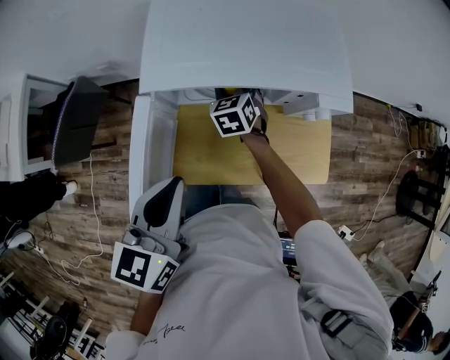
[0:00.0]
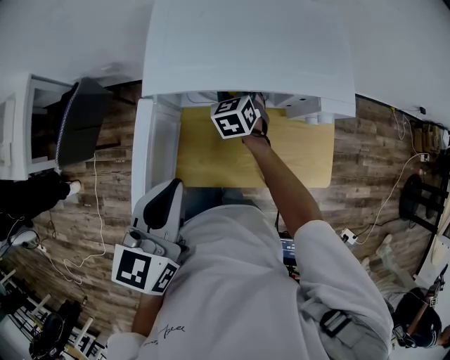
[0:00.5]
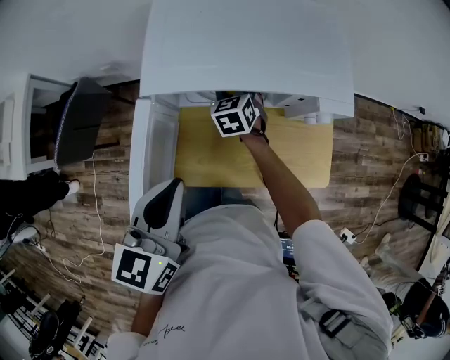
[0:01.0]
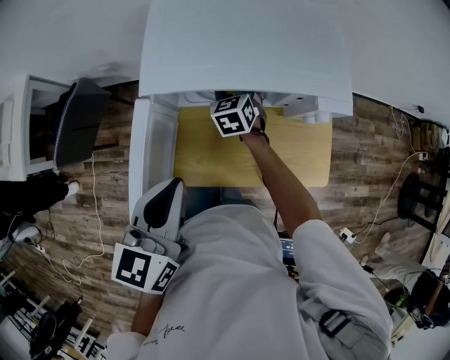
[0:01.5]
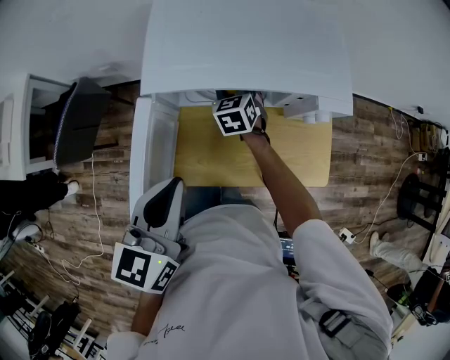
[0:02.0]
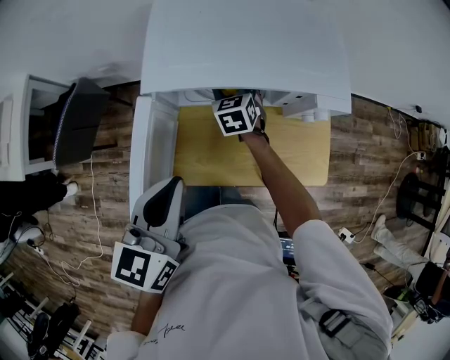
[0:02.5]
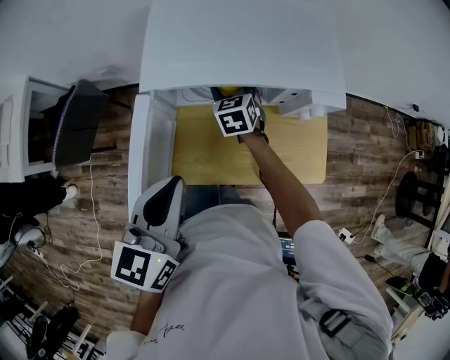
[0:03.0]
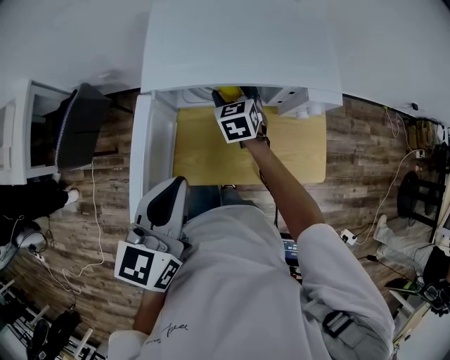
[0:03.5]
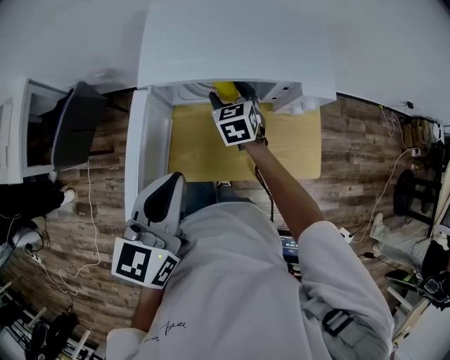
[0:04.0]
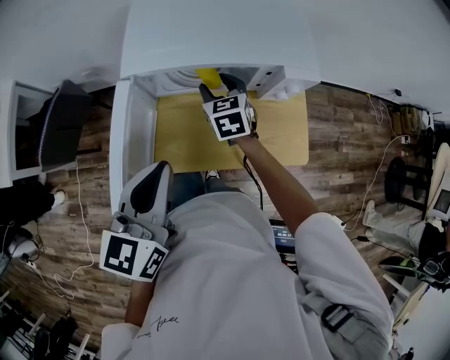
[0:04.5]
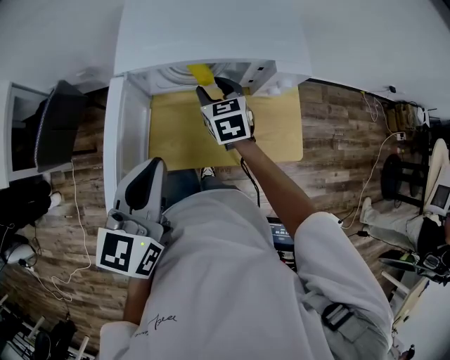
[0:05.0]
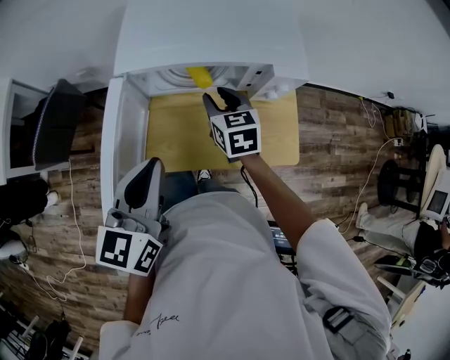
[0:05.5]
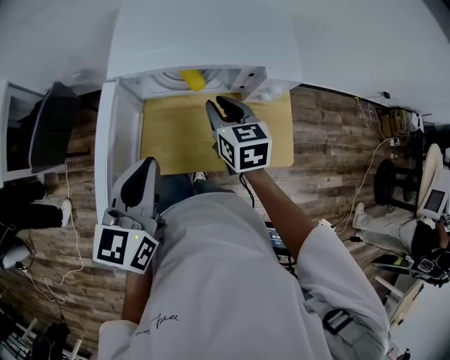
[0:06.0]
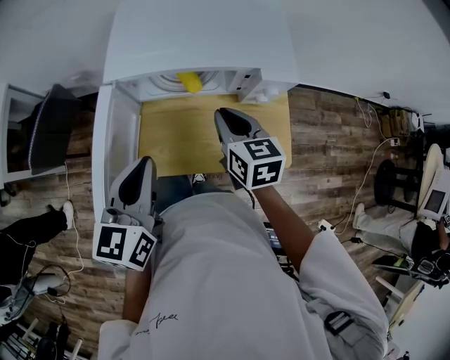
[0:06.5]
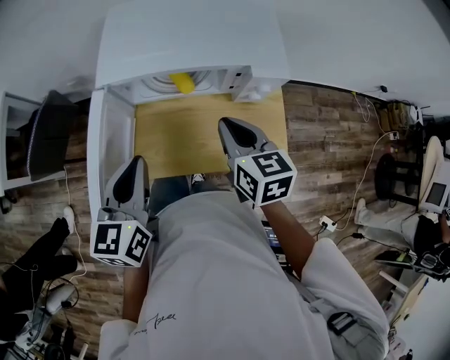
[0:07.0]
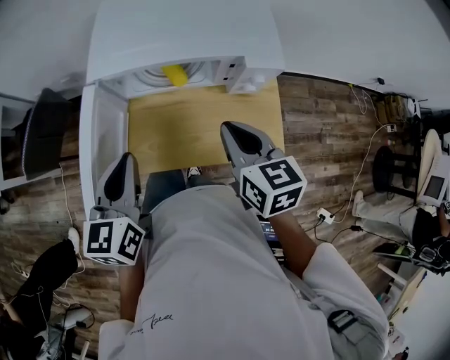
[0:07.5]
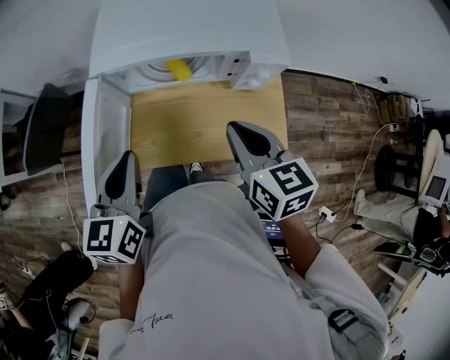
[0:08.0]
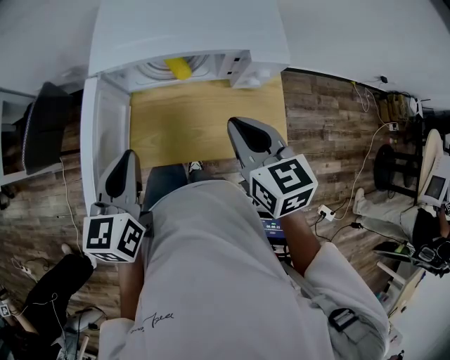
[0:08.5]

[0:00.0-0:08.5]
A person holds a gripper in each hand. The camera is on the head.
0:00.0 to 0:02.0: Both grippers stay about where they are.
0:02.0 to 0:04.0: The right gripper travels backward by some 5 cm.
0:04.0 to 0:06.5: The right gripper moves backward, upward and to the right, approximately 15 cm, turns by roughly 20 degrees, and closes its fingers.
0:06.5 to 0:08.5: The right gripper heads backward and upward, covering about 10 cm.

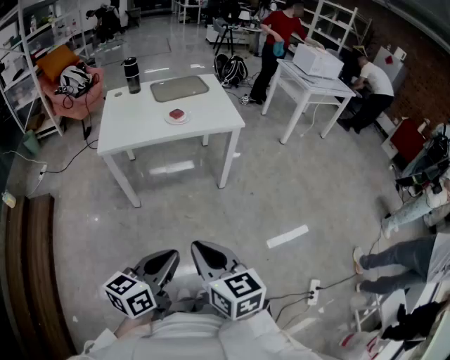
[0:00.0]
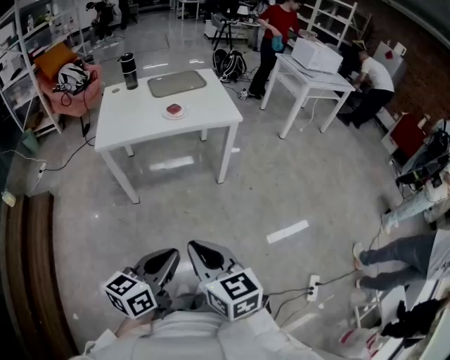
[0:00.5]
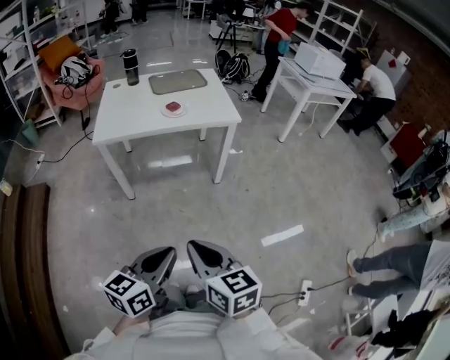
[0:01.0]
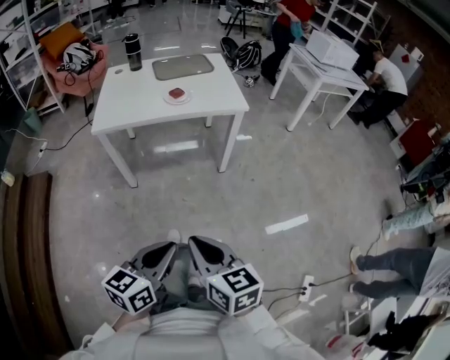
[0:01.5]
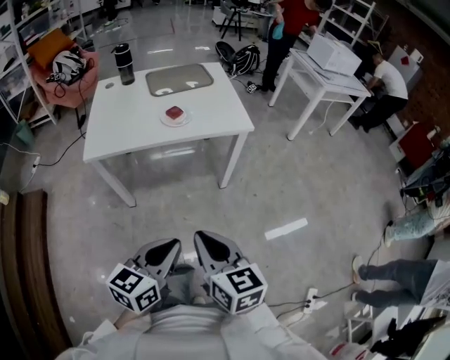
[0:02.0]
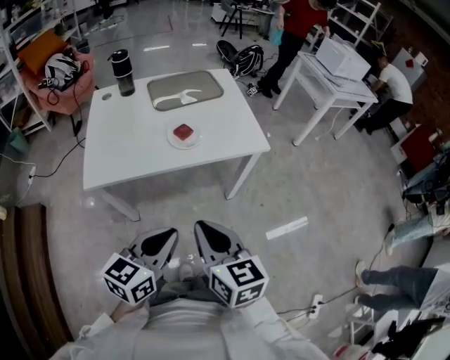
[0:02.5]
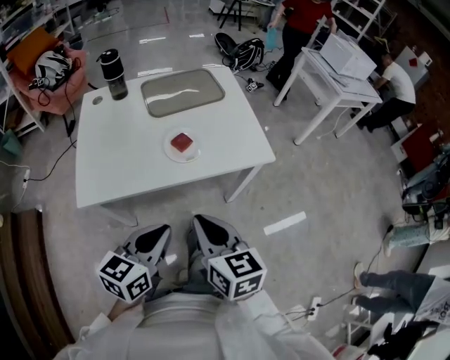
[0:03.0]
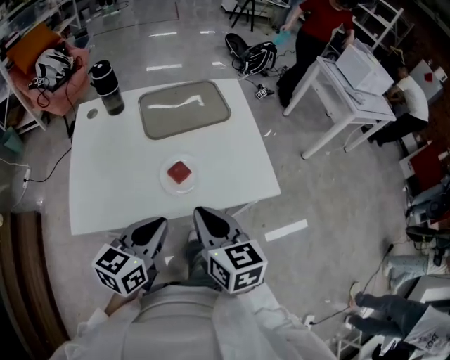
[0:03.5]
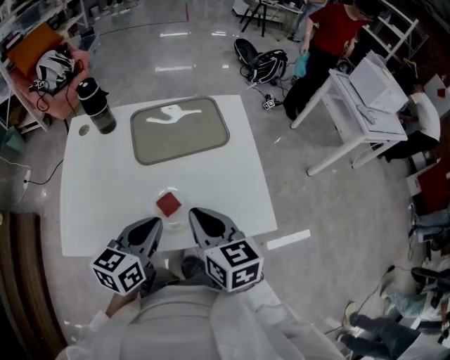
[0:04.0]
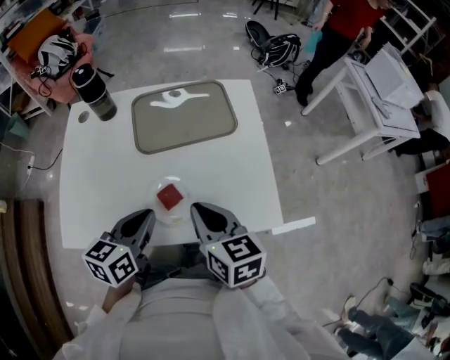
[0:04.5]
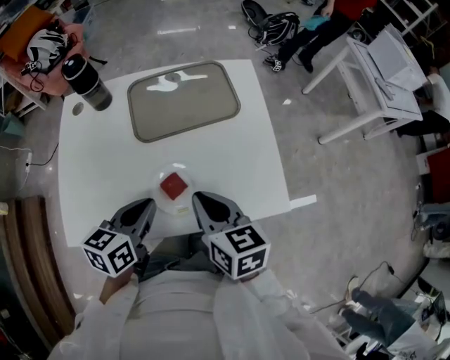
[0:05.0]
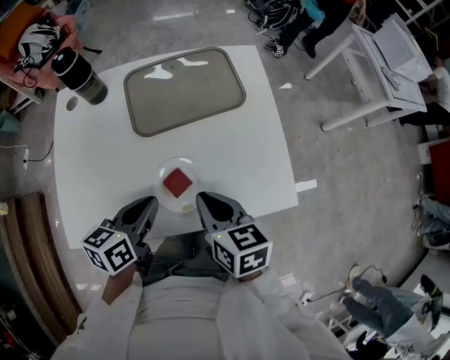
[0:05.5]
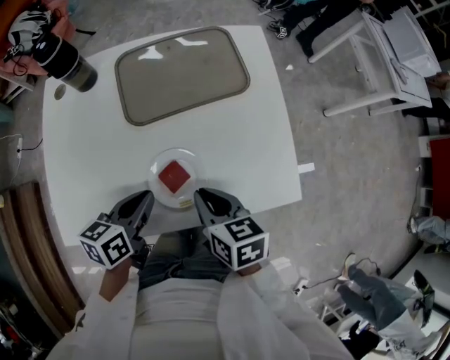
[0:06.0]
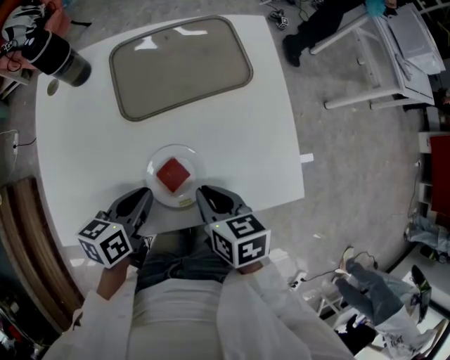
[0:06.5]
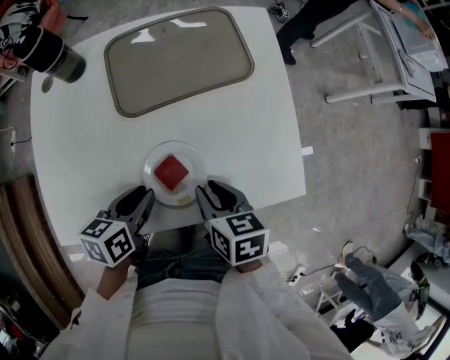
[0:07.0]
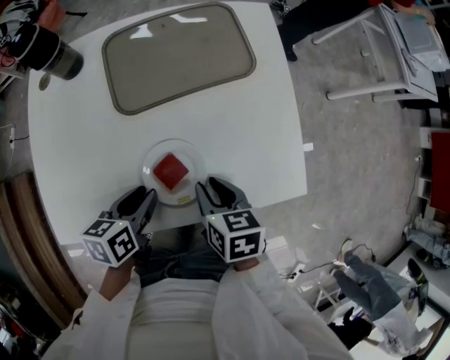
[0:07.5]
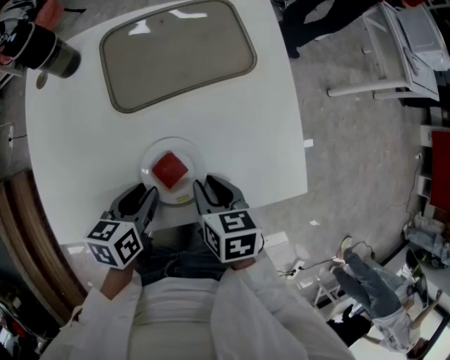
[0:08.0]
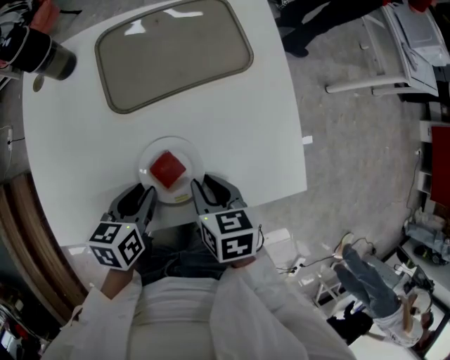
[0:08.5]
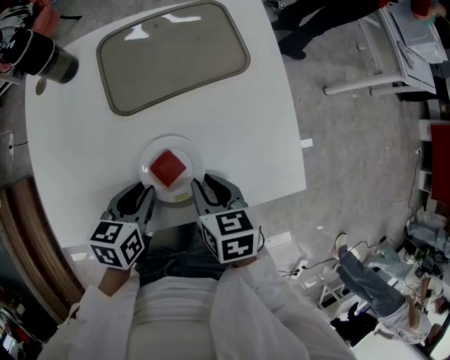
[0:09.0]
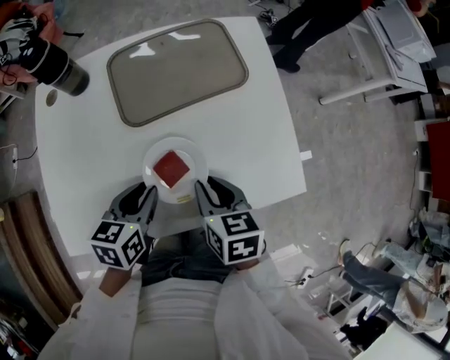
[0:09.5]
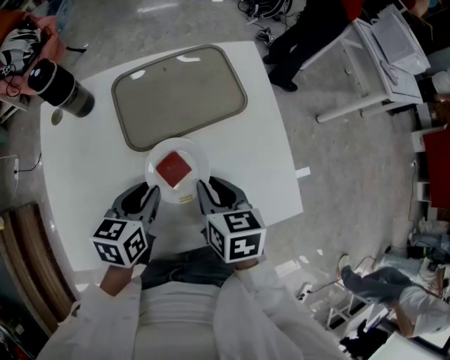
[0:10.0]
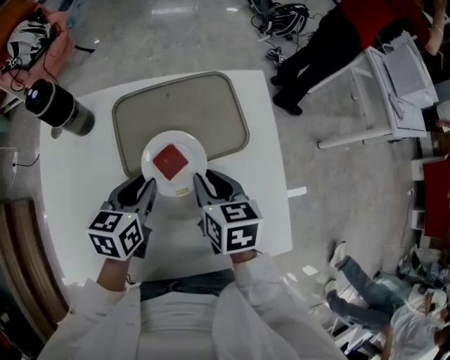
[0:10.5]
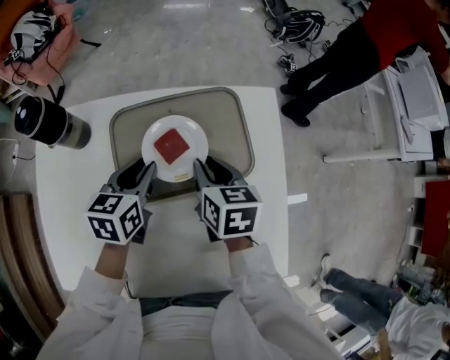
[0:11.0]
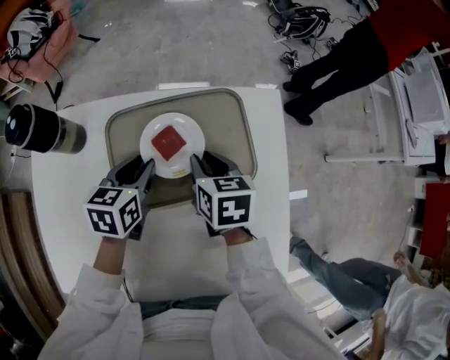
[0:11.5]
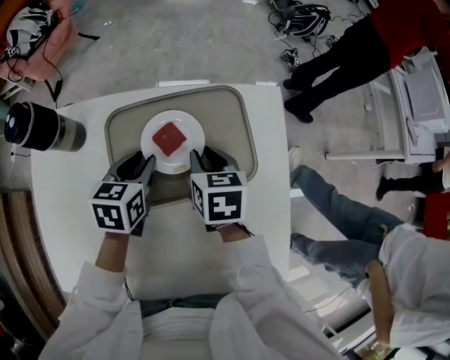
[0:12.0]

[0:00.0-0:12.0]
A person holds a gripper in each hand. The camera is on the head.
0:00.0 to 0:02.0: The two grippers go some 20 cm forward.
0:02.0 to 0:04.0: The pair of grippers is taken forward, some 60 cm.
0:04.0 to 0:06.0: The left gripper travels downward, forward and to the left by about 15 cm, and changes its angle by some 20 degrees. The right gripper is displaced downward by roughly 15 cm, and rotates roughly 20 degrees.
0:06.0 to 0:08.0: Both grippers travel together downward, about 5 cm. The left gripper opens up.
0:08.0 to 0:10.0: Both grippers move forward and upward, some 10 cm.
0:10.0 to 0:12.0: Both grippers travel together forward, about 25 cm.

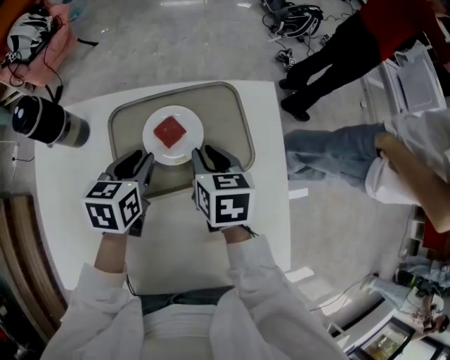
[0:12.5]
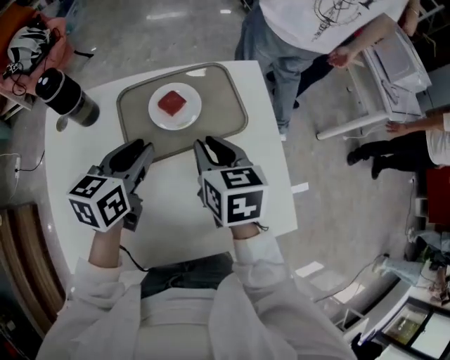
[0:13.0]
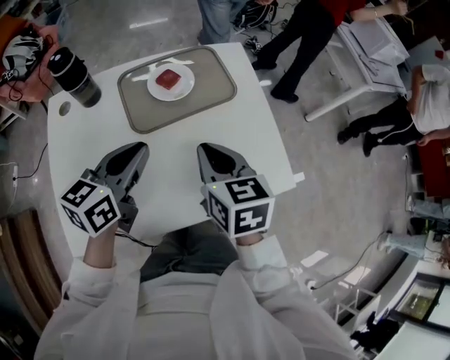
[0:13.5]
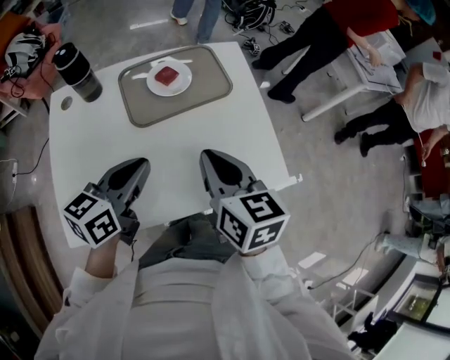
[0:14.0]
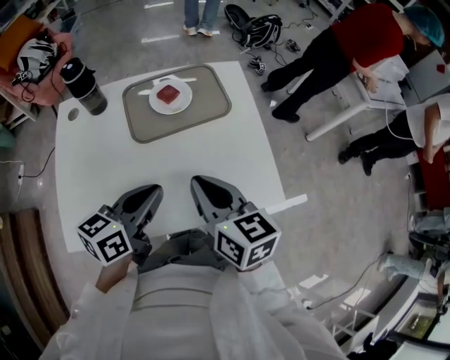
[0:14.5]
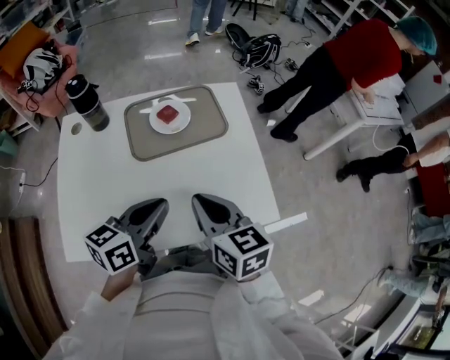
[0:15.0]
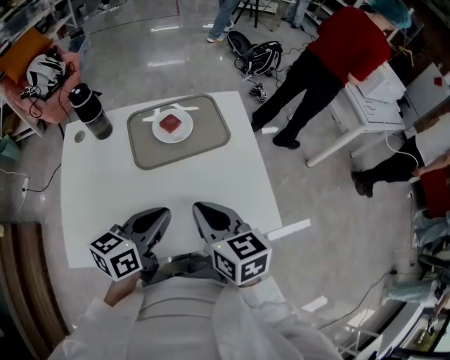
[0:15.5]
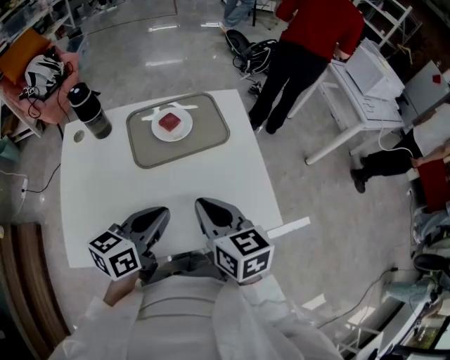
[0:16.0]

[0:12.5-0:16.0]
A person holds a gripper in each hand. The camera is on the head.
0:12.5 to 0:14.5: The grippers both shift backward and upward by some 35 cm. The left gripper swivels roughly 30 degrees, and closes up; the right gripper rotates approximately 20 degrees.
0:14.5 to 0:16.0: The grippers make only small movements.

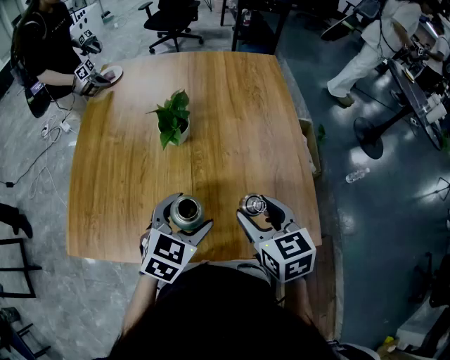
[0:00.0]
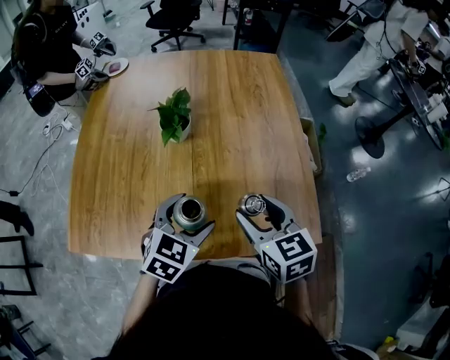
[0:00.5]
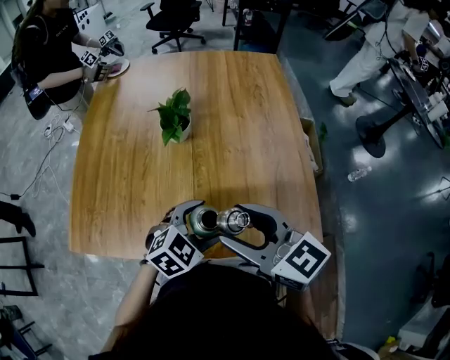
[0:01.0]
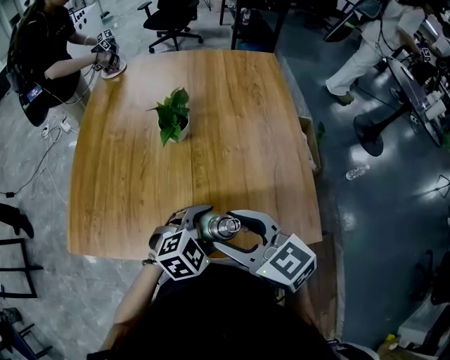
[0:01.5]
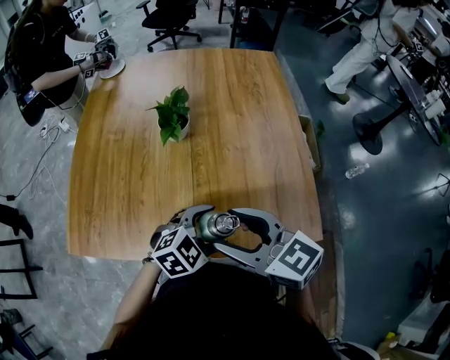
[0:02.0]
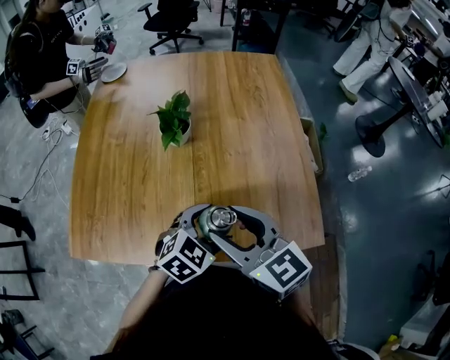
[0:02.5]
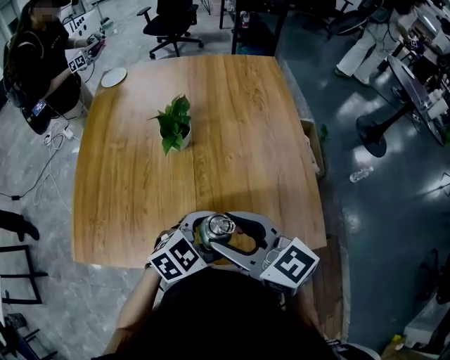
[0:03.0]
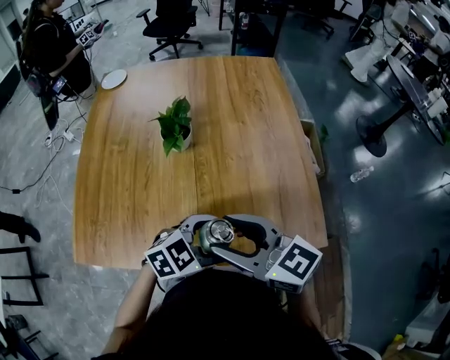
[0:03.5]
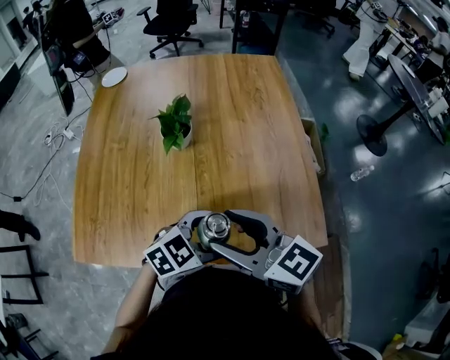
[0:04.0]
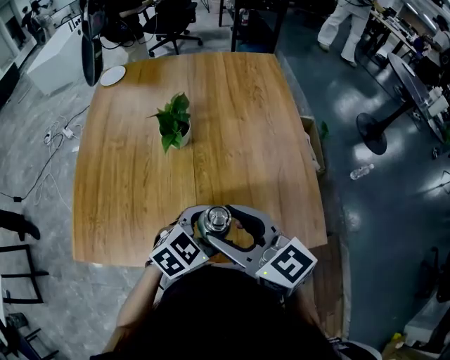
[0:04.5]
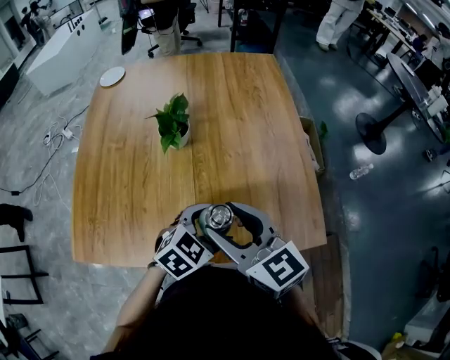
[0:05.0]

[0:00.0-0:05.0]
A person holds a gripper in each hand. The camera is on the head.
0:00.0 to 0:02.5: The left gripper shifts about 5 cm to the right. The right gripper shifts some 10 cm to the left and upward, and changes its angle by some 30 degrees.
